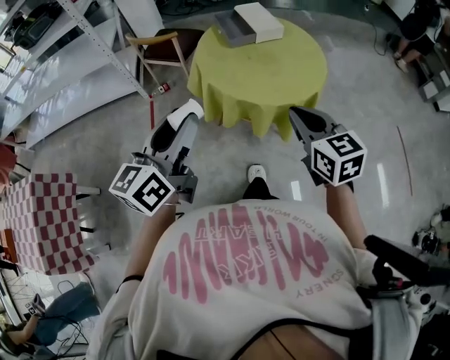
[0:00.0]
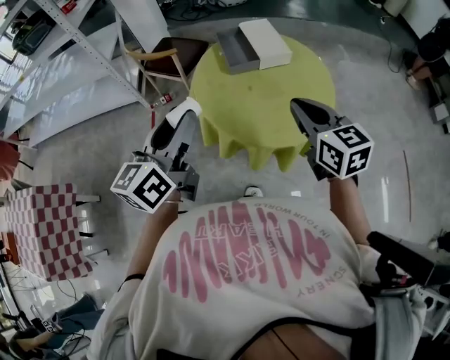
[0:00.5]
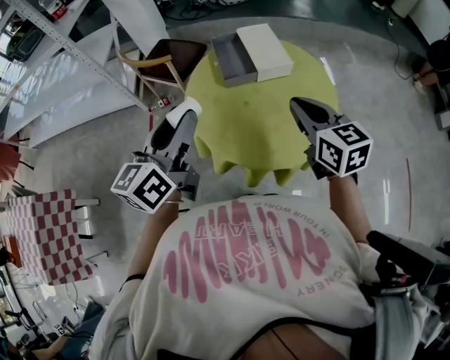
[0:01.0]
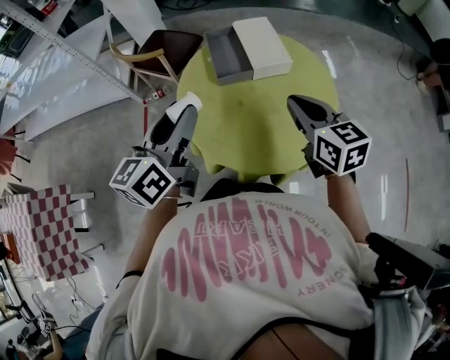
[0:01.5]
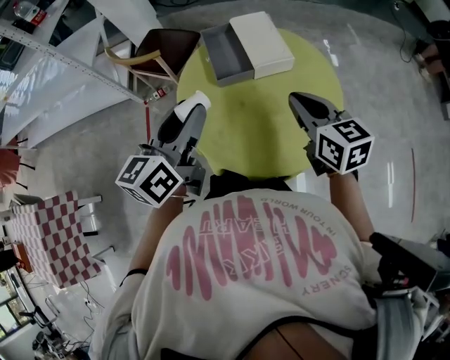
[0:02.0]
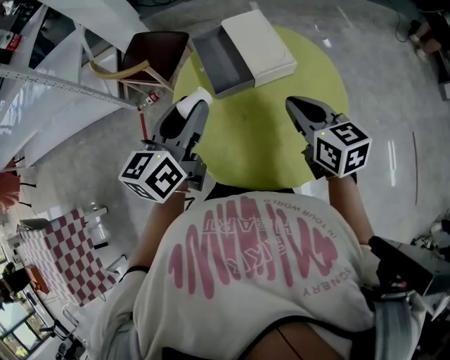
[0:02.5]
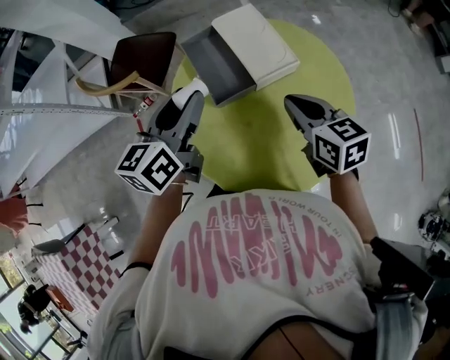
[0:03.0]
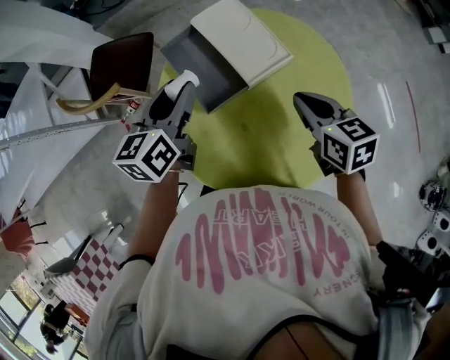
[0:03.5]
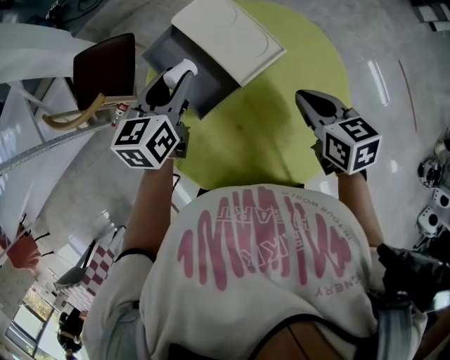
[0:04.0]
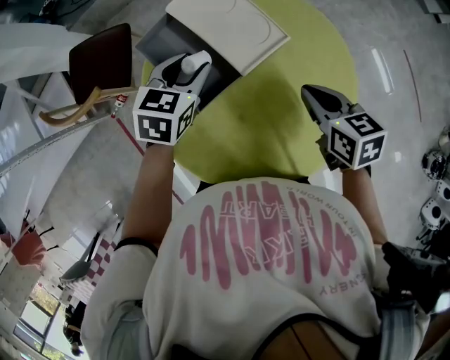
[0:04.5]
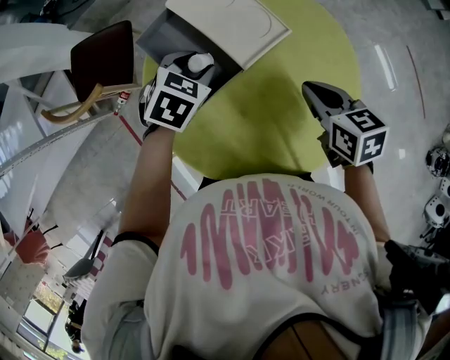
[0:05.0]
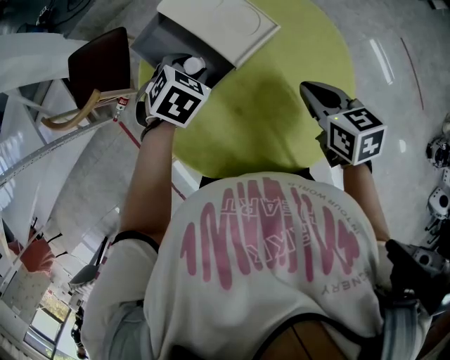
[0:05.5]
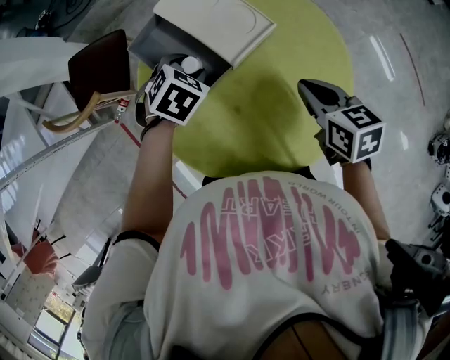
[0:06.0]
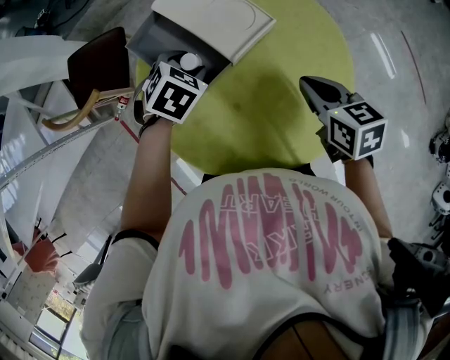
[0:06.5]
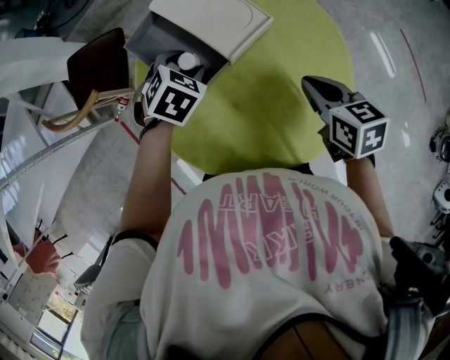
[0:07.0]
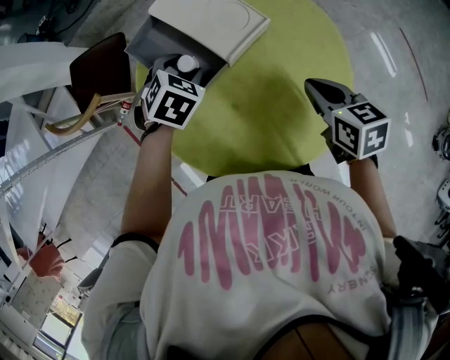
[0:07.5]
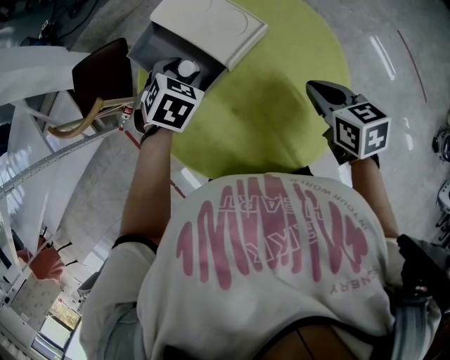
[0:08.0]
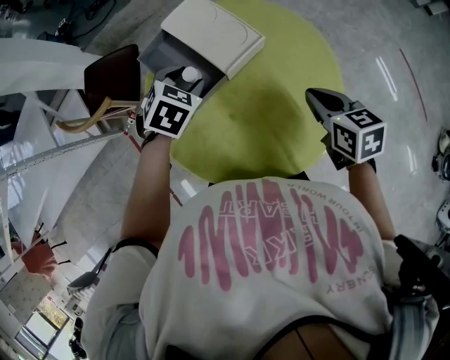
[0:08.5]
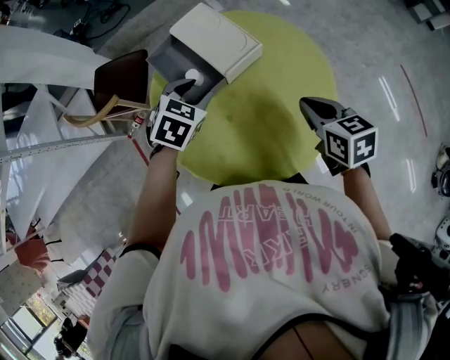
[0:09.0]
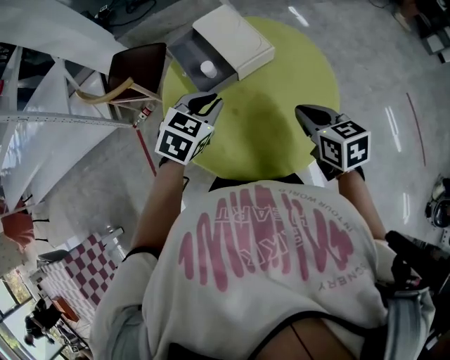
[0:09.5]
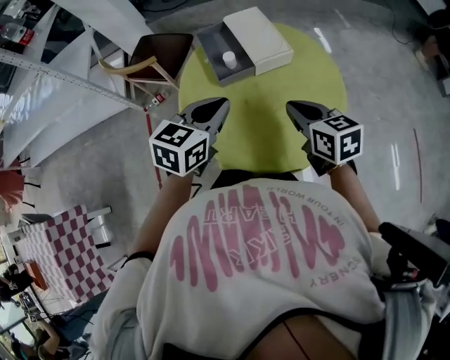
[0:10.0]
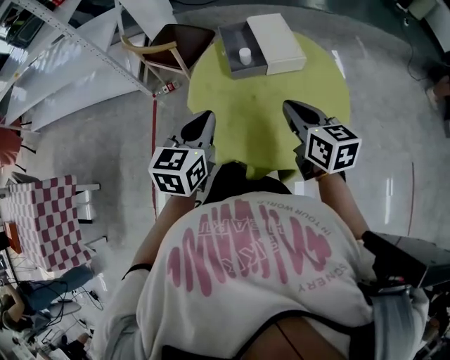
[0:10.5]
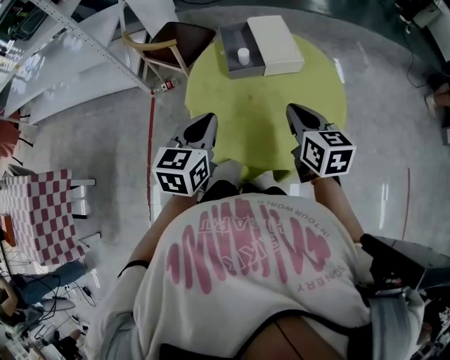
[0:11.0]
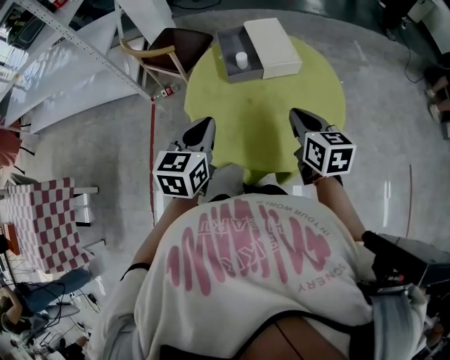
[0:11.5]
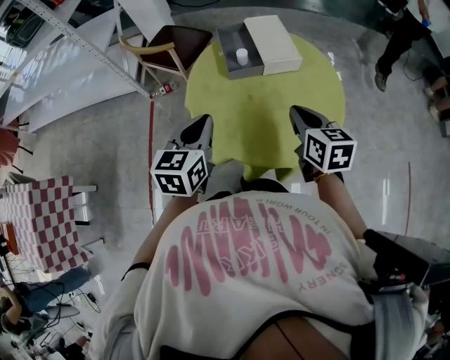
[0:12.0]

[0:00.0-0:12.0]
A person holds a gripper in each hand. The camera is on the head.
0:00.0 to 0:02.0: The grippers both shift forward by roughly 35 cm.
0:02.0 to 0:04.0: The right gripper moves downward and forward, roughly 15 cm, and swivels roughly 30 degrees. Meanwhile the left gripper shifts about 30 cm forward and downward, and turns by some 30 degrees.
0:04.0 to 0:06.0: The left gripper goes approximately 15 cm downward and to the right, and tips its fingers downward by some 40 degrees.
0:06.0 to 0:08.0: The grippers move only a little.
0:08.0 to 0:10.0: The left gripper goes roughly 30 cm backward and upward, tips its fingers upward by some 40 degrees, and closes its fingers. Meanwhile the right gripper goes some 15 cm backward, upward and to the left, and changes its angle by some 30 degrees.
0:10.0 to 0:12.0: The left gripper is displaced backward and to the left by about 10 cm, and swivels roughly 30 degrees.

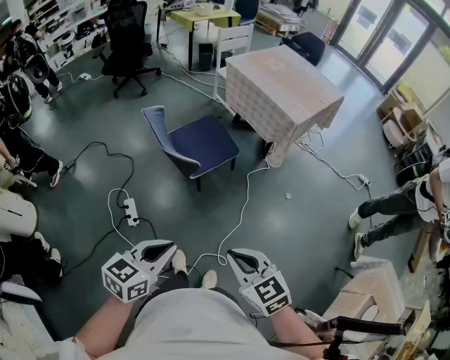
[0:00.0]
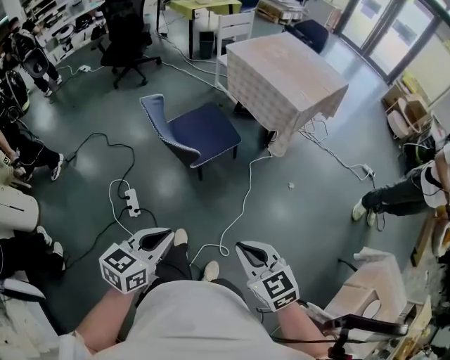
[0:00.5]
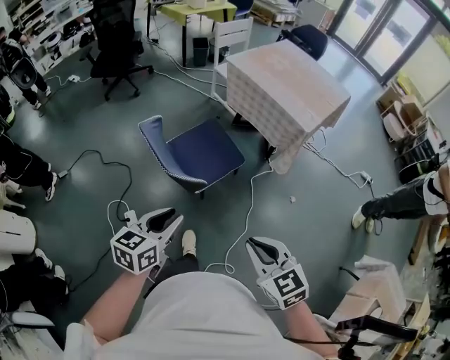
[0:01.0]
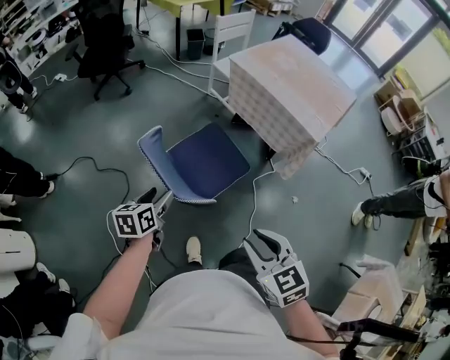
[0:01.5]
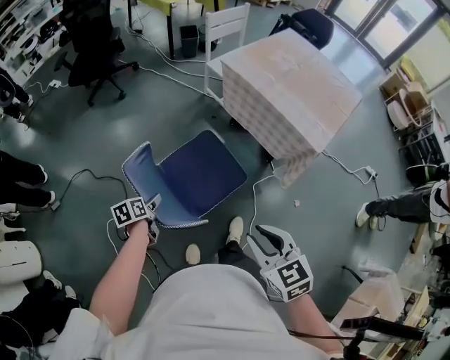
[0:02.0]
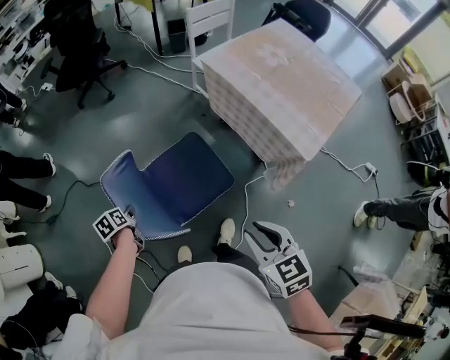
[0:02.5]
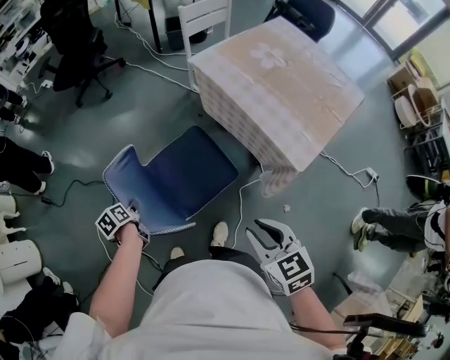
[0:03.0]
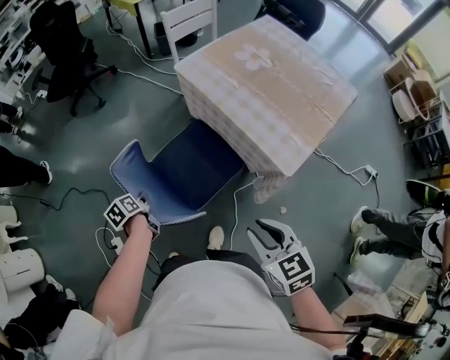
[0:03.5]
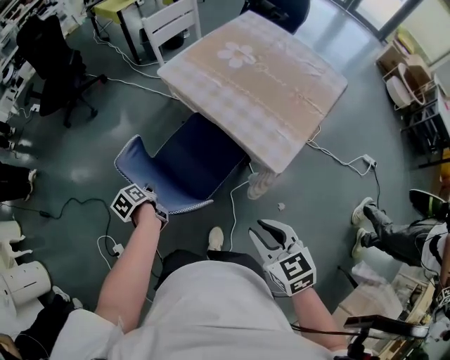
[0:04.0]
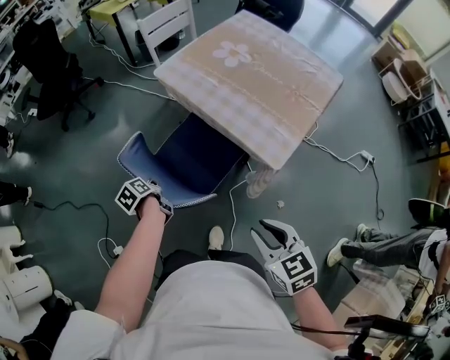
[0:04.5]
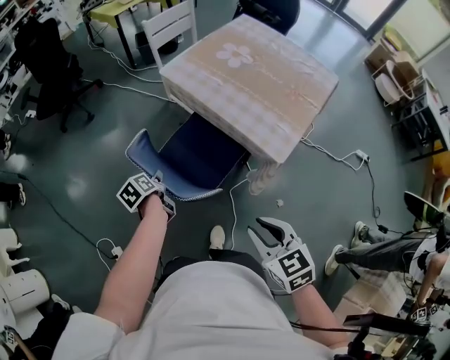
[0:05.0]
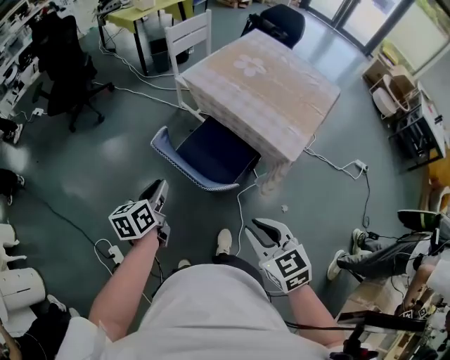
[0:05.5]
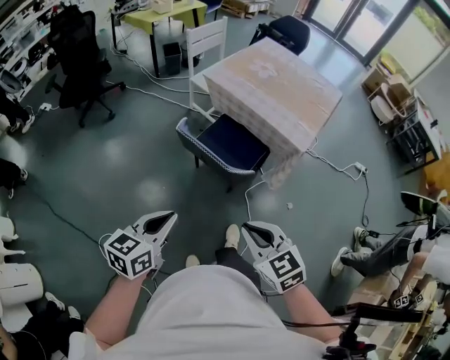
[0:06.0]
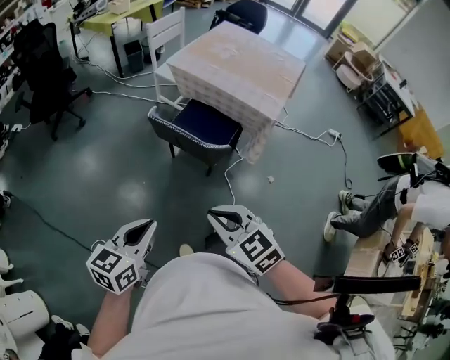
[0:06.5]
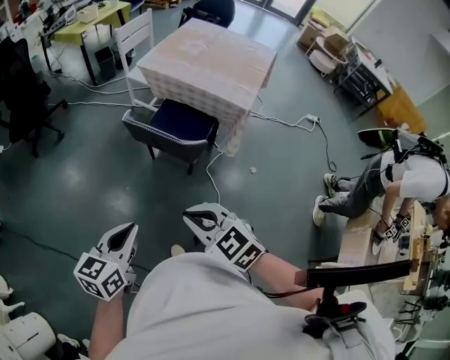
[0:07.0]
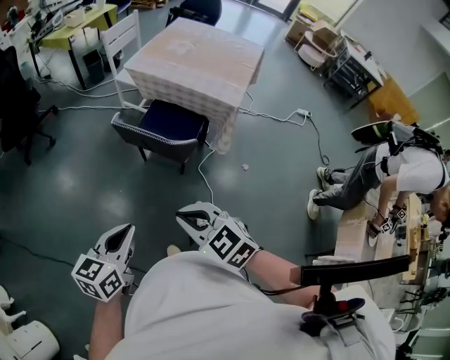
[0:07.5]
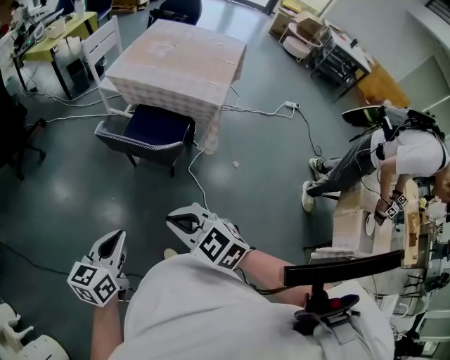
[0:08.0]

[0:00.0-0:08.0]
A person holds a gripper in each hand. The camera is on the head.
0:00.0 to 0:02.0: The left gripper moves forward and downward, about 60 cm, rotates some 50 degrees, and opens up. The right gripper moves forward, approximately 40 cm, and opens its fingers.
0:02.0 to 0:04.0: The left gripper heads to the right and forward, covering some 30 cm, turns by about 20 degrees, and closes its fingers, while the right gripper moves to the right, roughly 30 cm.
0:04.0 to 0:06.0: The left gripper moves backward, upward and to the left, about 35 cm, points its fingers roughly 30 degrees further upward, and opens and closes again. The right gripper goes some 30 cm to the left and backward, and closes its fingers.
0:06.0 to 0:08.0: The right gripper goes about 10 cm backward and to the left. Meanwhile the left gripper heads backward, covering about 5 cm.

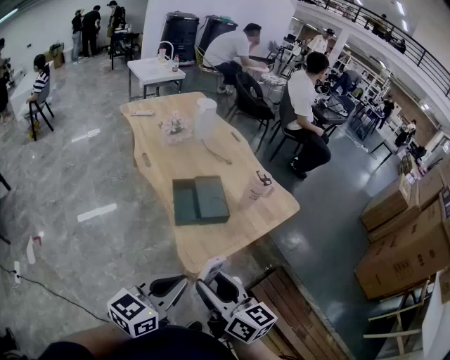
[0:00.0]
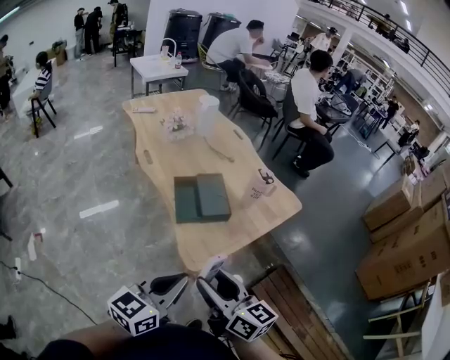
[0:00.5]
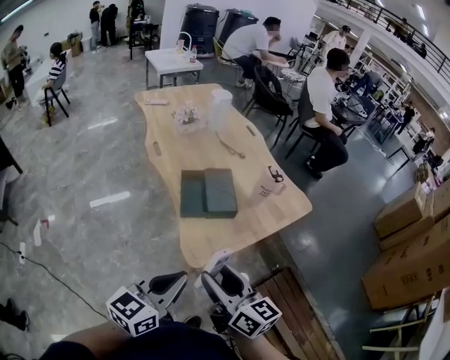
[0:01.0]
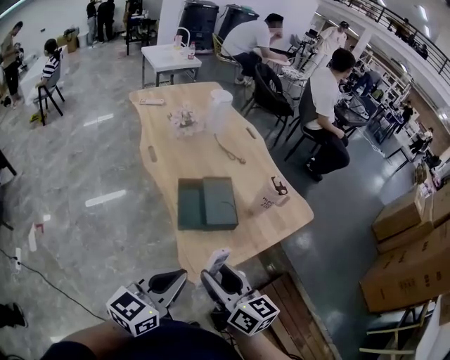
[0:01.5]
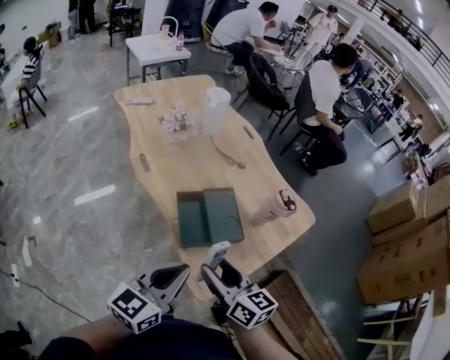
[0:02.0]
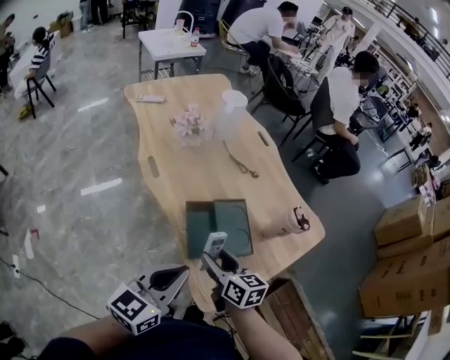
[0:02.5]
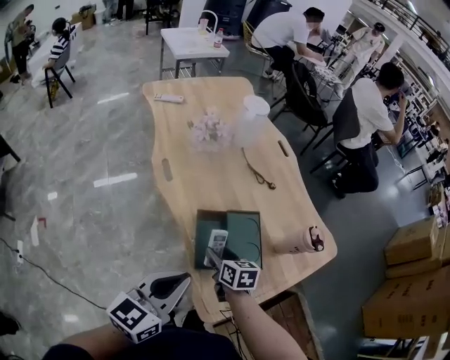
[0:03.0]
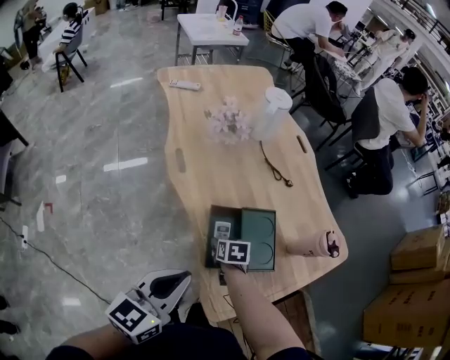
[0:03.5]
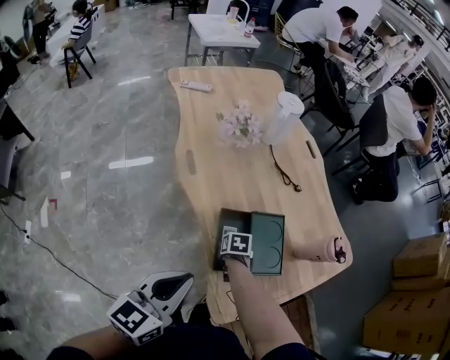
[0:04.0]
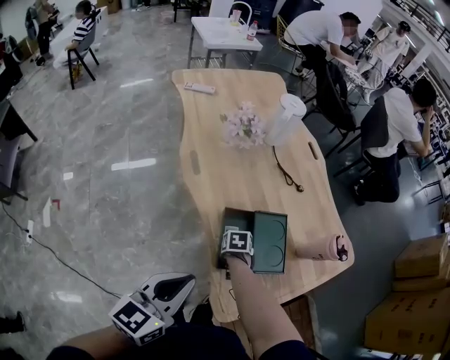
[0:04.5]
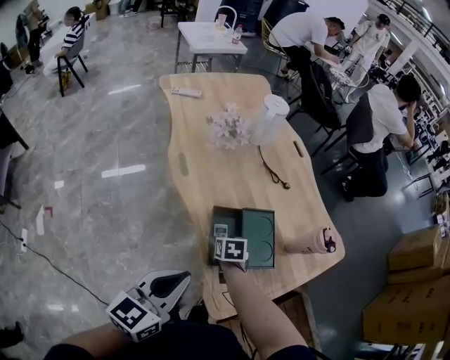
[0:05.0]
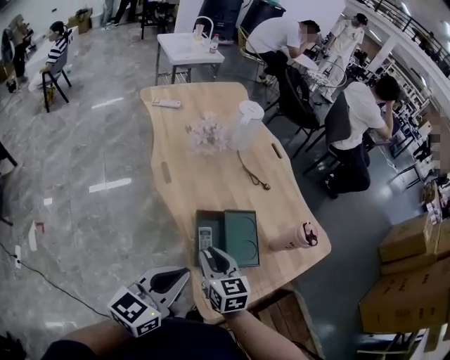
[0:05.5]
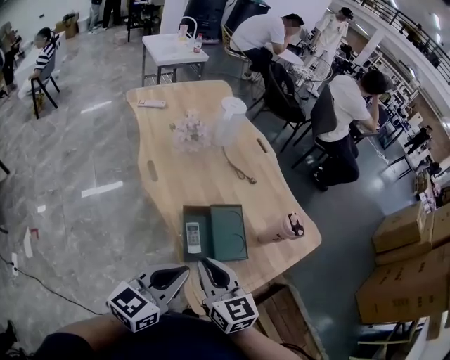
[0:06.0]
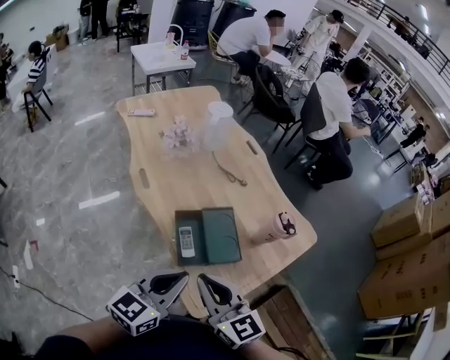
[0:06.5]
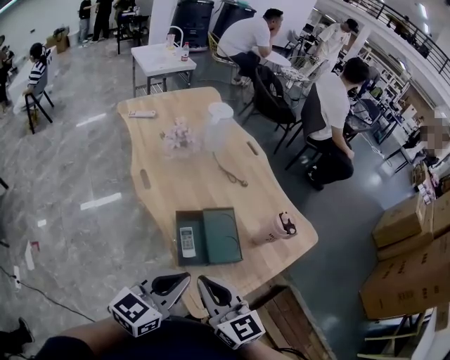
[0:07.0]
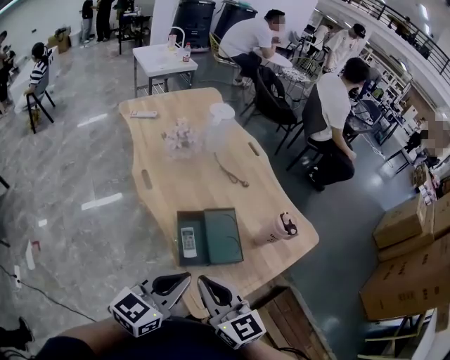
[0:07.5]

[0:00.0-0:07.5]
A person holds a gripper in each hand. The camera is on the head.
0:00.0 to 0:02.0: Both grippers move forward, about 20 cm.
0:02.0 to 0:04.0: The left gripper is displaced forward and to the left by approximately 15 cm. Meanwhile the right gripper is displaced downward and forward by approximately 40 cm, and points its fingers about 60 degrees further downward.
0:04.0 to 0:05.5: The right gripper goes approximately 25 cm upward, tips its fingers upward by some 50 degrees, and closes; the left gripper moves some 5 cm.
0:05.5 to 0:07.5: The right gripper is displaced upward, backward and to the right by approximately 15 cm; the left gripper is displaced to the right by approximately 5 cm.
